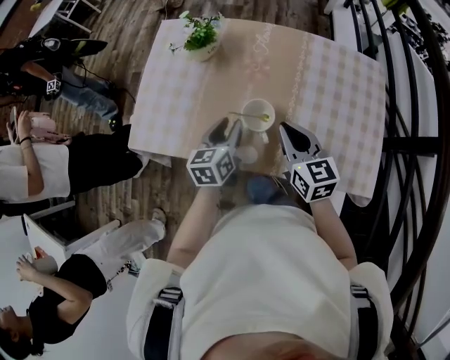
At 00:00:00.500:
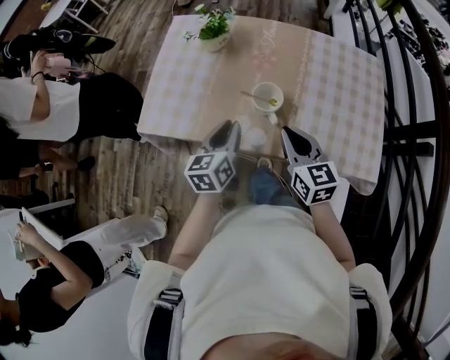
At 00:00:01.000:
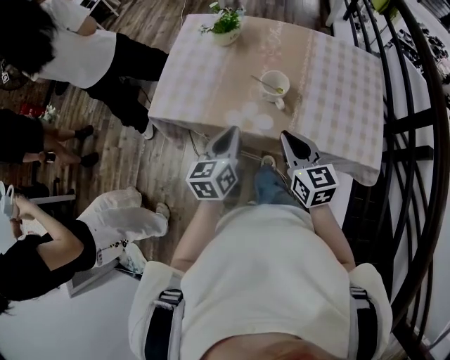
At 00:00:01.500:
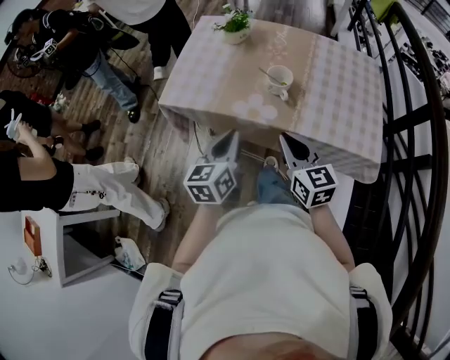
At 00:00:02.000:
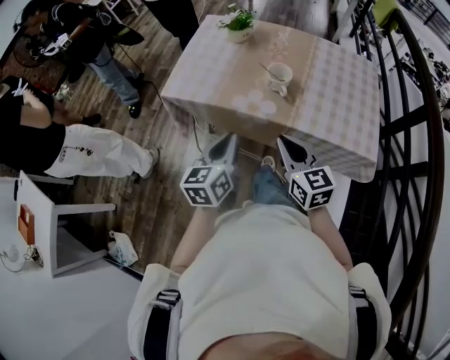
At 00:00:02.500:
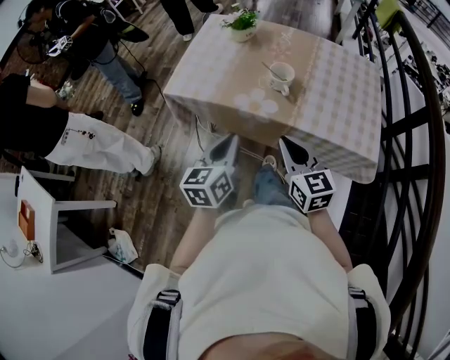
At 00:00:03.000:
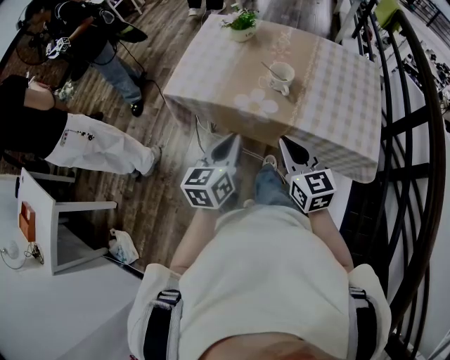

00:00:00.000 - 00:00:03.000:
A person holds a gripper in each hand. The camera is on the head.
00:00:00.000 - 00:00:01.500: The left gripper travels backward and upward by some 25 cm, and closes. Meanwhile the right gripper travels backward and to the left by roughly 25 cm.
00:00:01.500 - 00:00:03.000: The left gripper moves backward, some 5 cm.

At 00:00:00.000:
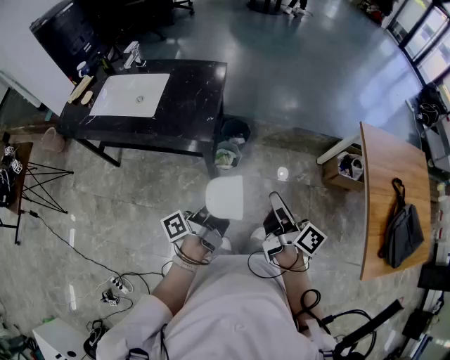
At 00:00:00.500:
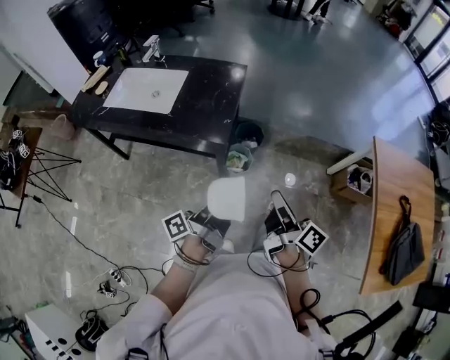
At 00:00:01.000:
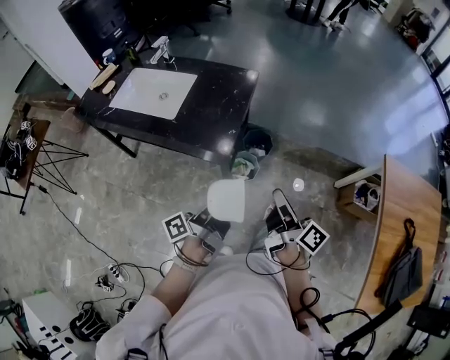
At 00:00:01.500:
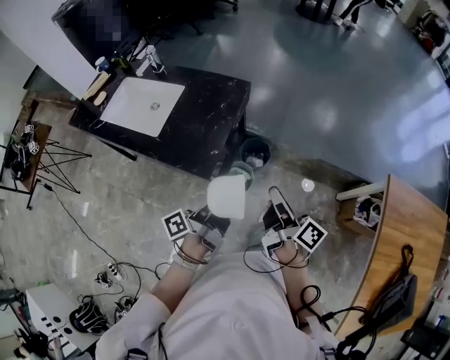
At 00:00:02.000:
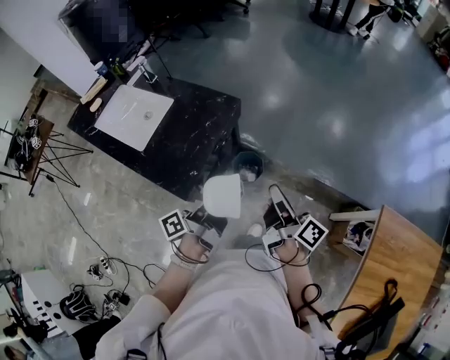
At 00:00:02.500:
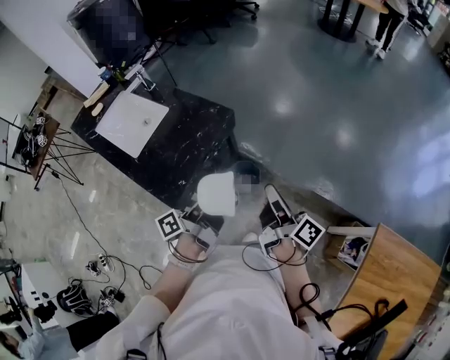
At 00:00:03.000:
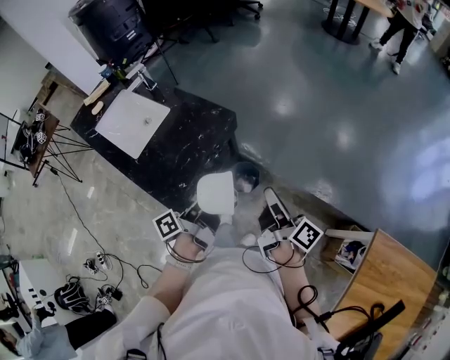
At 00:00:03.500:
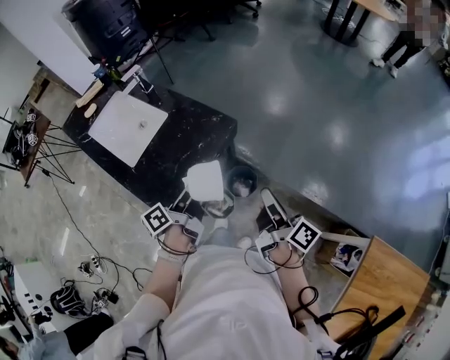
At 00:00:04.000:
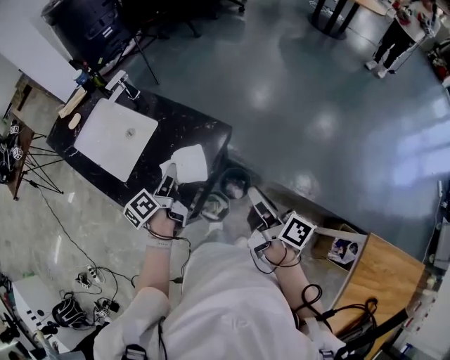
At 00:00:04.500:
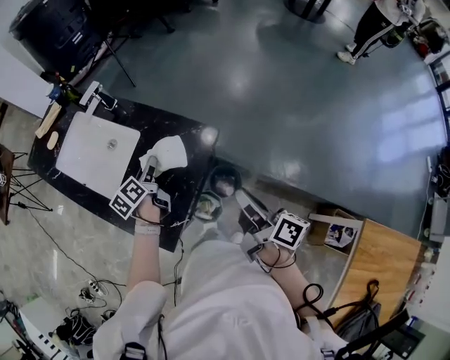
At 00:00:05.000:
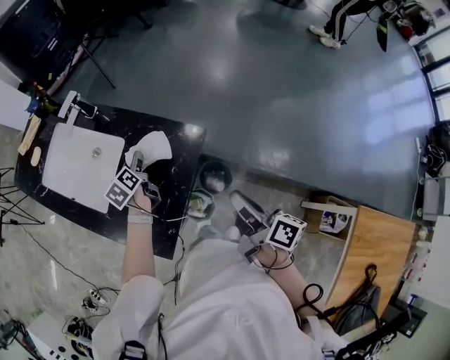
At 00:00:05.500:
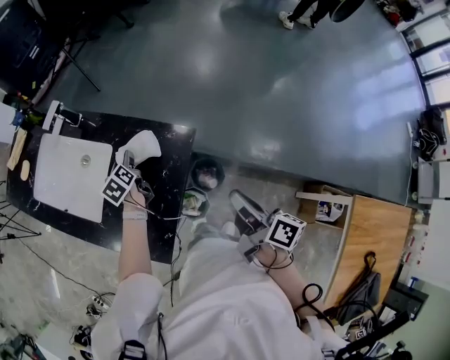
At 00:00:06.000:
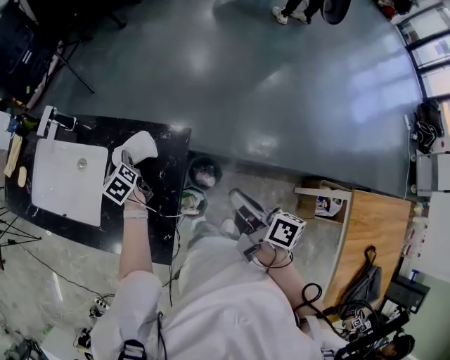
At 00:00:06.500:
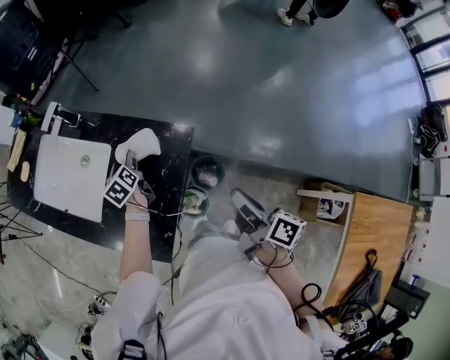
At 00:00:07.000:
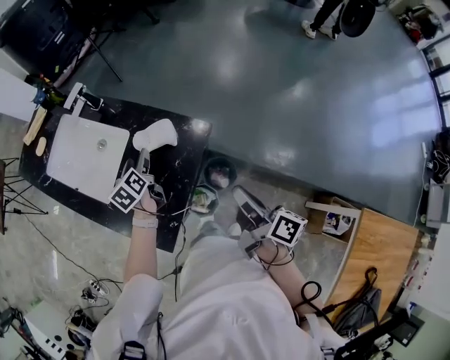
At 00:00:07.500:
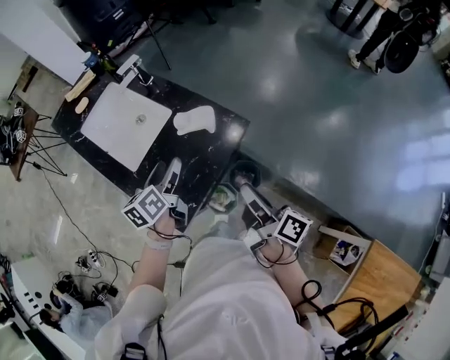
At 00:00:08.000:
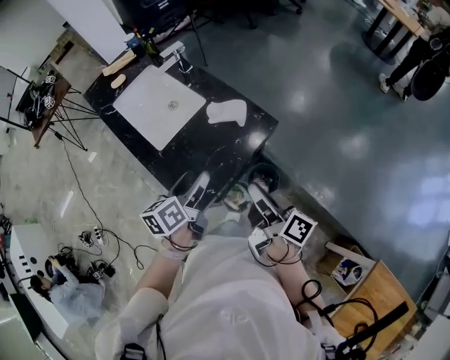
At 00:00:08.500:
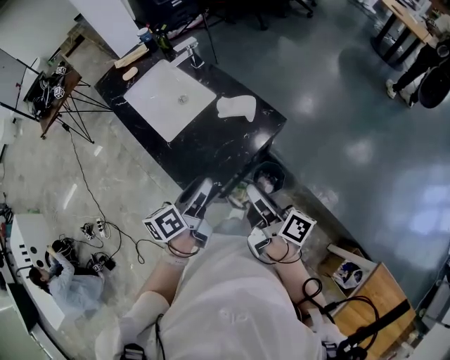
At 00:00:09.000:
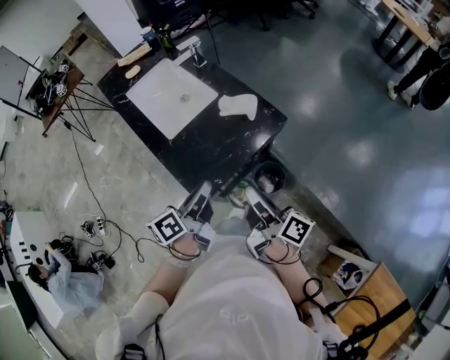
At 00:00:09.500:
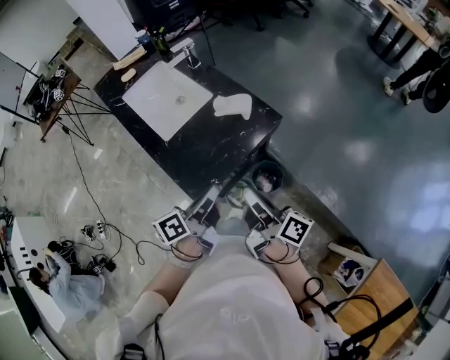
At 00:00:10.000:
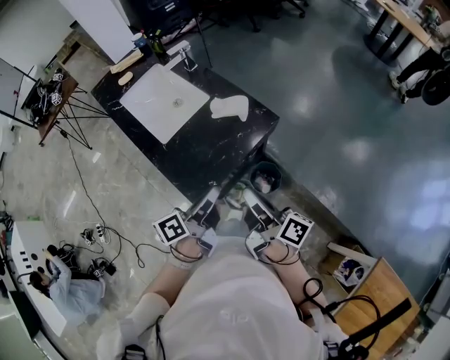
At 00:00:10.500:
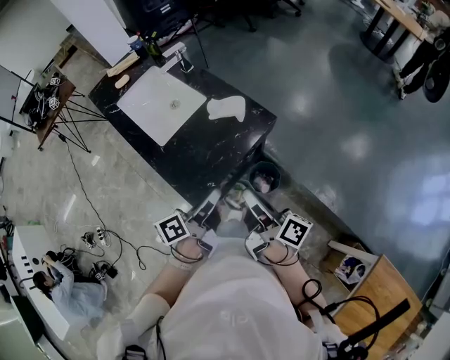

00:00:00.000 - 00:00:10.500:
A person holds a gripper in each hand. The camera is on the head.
00:00:00.000 - 00:00:02.000: The left gripper shifts some 35 cm forward and to the right. Meanwhile the right gripper is displaced forward by about 40 cm.
00:00:02.000 - 00:00:04.000: The left gripper is displaced forward and to the left by approximately 30 cm, and rotates roughly 40 degrees. Meanwhile the right gripper heads forward, covering approximately 15 cm.
00:00:04.000 - 00:00:06.500: The right gripper goes roughly 5 cm downward. The left gripper heads forward and downward, covering about 25 cm, and swivels approximately 40 degrees.
00:00:06.500 - 00:00:08.500: The right gripper goes some 15 cm to the left and backward, and turns by about 30 degrees. Meanwhile the left gripper travels backward and upward by some 40 cm, and turns by some 30 degrees.
00:00:08.500 - 00:00:10.500: The left gripper travels to the right by roughly 5 cm, turns by roughly 20 degrees, and closes.

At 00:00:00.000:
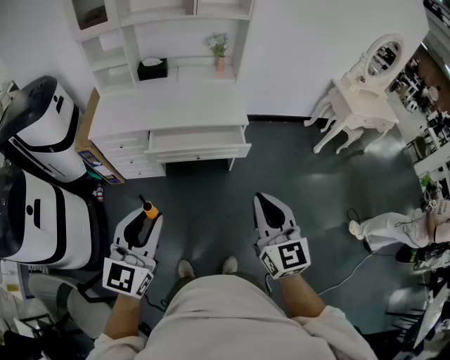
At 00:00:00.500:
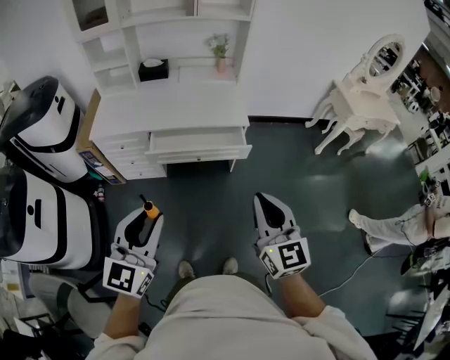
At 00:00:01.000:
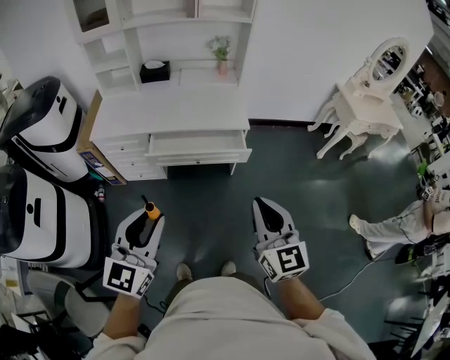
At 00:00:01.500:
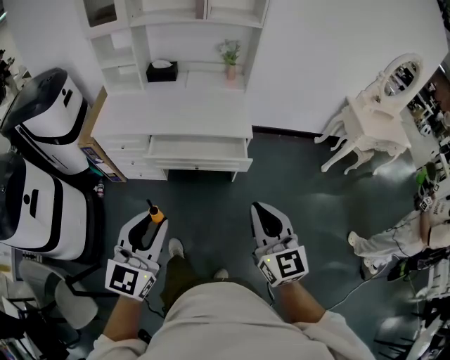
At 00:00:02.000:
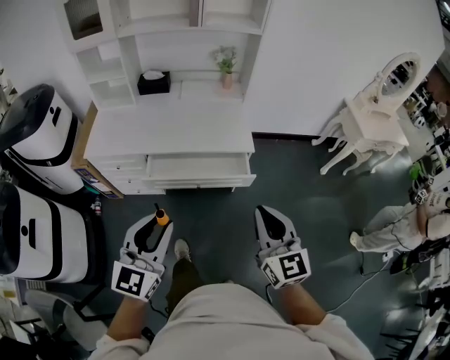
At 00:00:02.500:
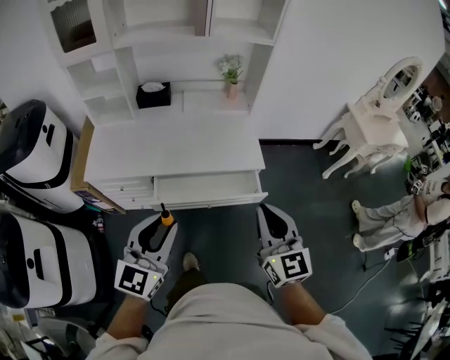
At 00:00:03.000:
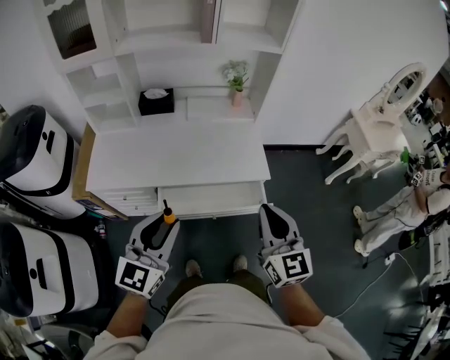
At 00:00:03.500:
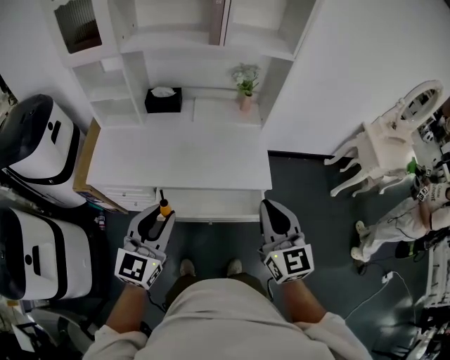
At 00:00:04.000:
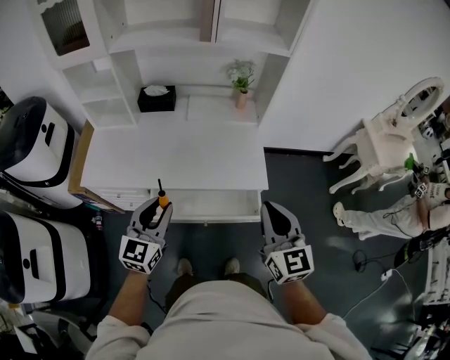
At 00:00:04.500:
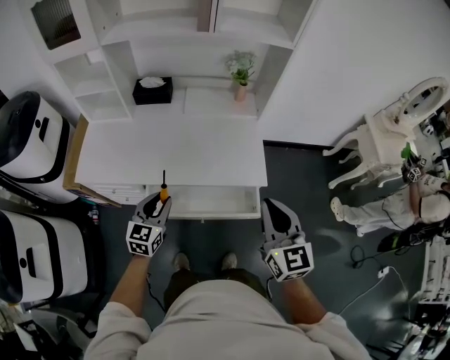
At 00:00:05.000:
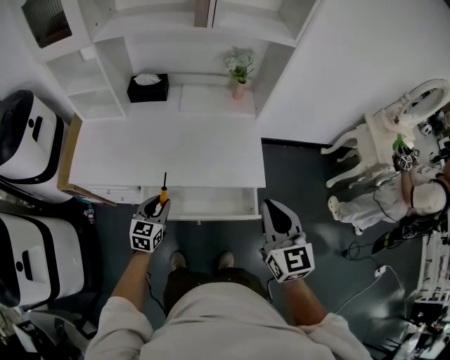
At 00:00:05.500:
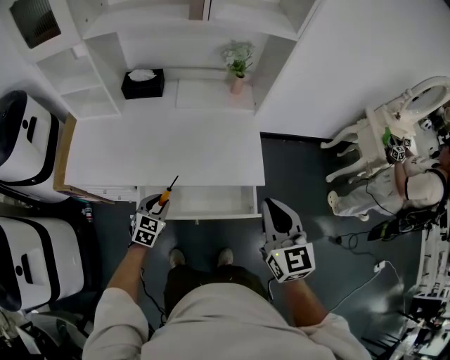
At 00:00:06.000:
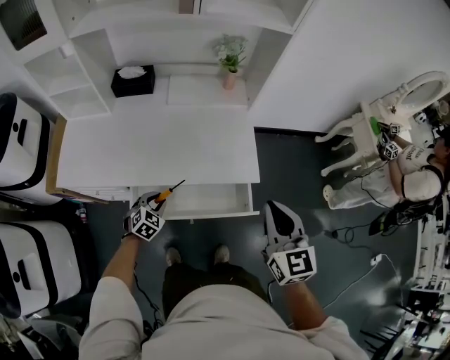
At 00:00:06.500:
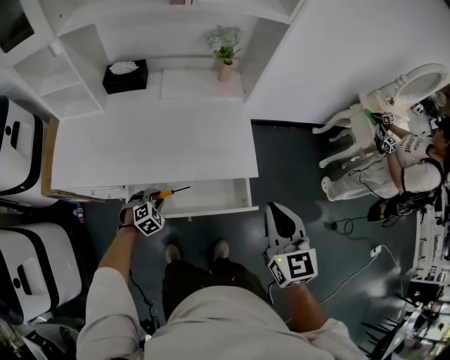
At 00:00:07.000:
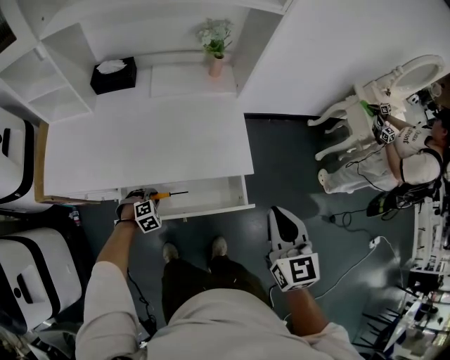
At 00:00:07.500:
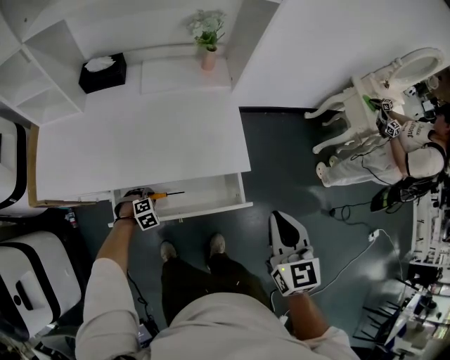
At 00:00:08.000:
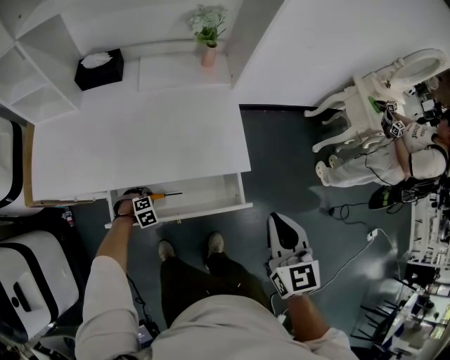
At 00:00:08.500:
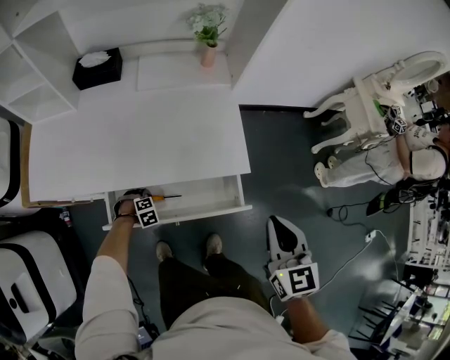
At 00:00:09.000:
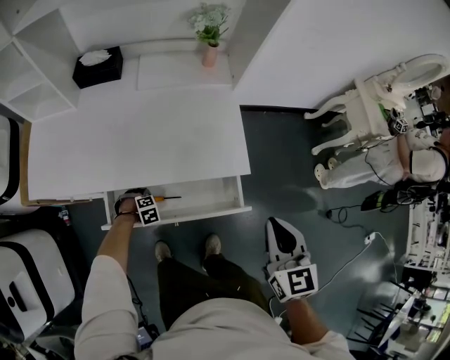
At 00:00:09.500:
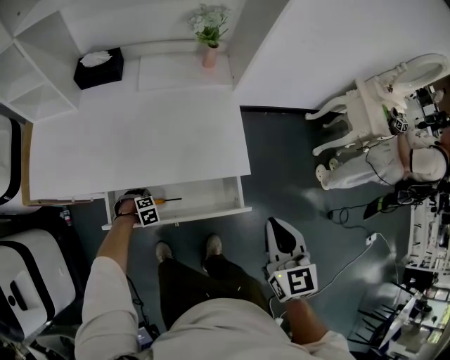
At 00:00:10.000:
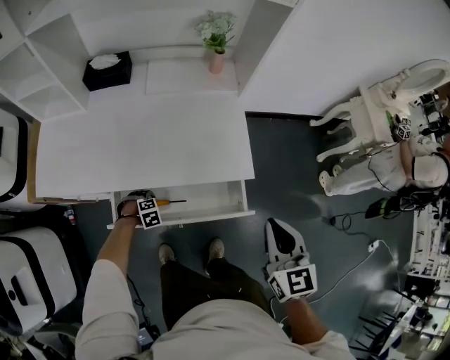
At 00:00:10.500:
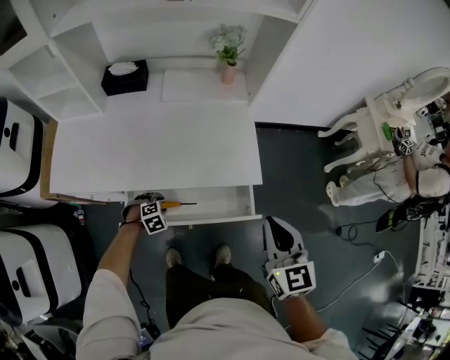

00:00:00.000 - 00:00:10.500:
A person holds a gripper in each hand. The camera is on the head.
00:00:00.000 - 00:00:02.000: The grippers both shift forward by about 15 cm.
00:00:02.000 - 00:00:04.000: Both grippers travel together forward, some 25 cm.
00:00:04.000 - 00:00:06.500: The left gripper heads downward, covering roughly 35 cm, and tilts its fingers approximately 50 degrees downward. Meanwhile the right gripper is displaced downward by about 5 cm.
00:00:06.500 - 00:00:08.500: The left gripper is displaced downward by roughly 15 cm, and changes its angle by some 30 degrees, while the right gripper heads downward, covering some 5 cm.
00:00:08.500 - 00:00:10.500: The left gripper moves upward, some 10 cm.

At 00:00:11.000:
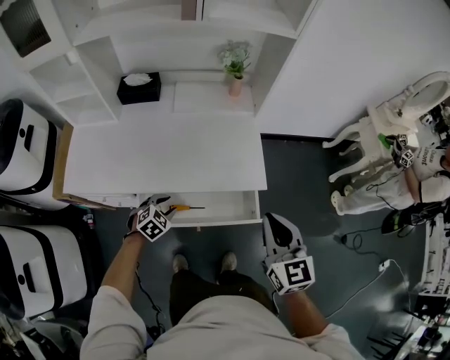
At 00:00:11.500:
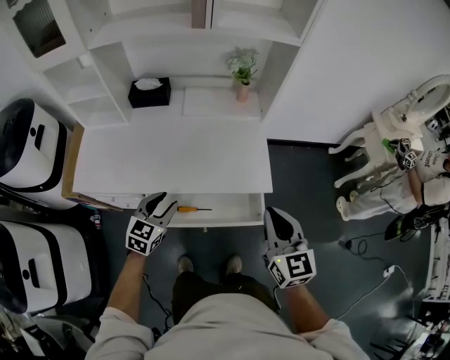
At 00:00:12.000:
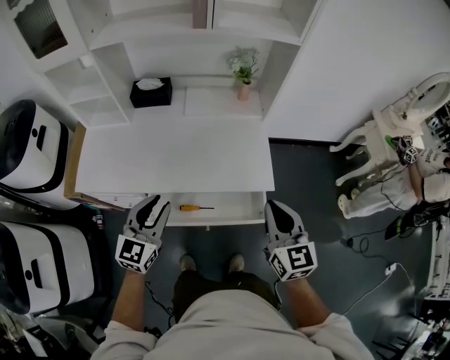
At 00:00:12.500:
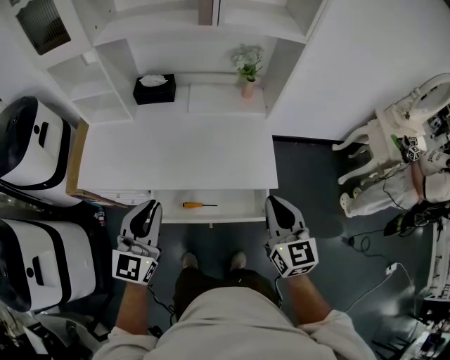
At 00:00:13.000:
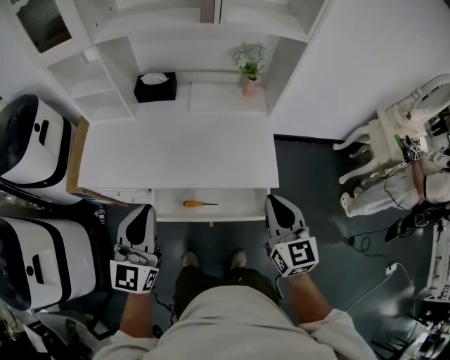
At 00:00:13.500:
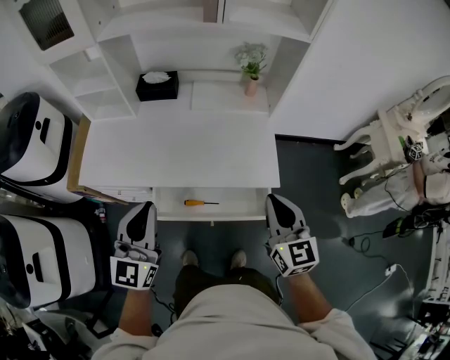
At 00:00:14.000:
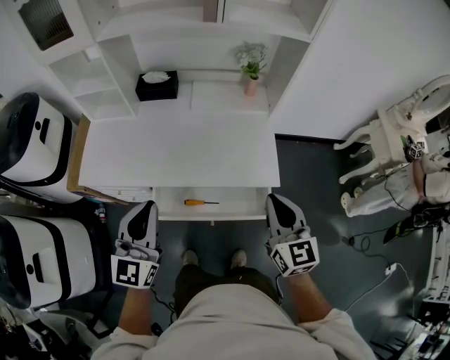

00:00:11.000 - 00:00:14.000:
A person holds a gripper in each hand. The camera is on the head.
00:00:11.000 - 00:00:12.500: The left gripper goes some 30 cm upward, tips its fingers upward by about 50 degrees, and closes up.
00:00:12.500 - 00:00:14.000: There are only small adjustments of the grippers.
